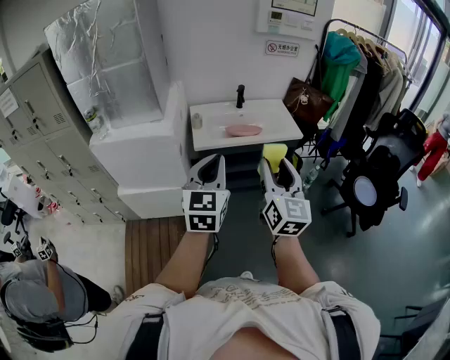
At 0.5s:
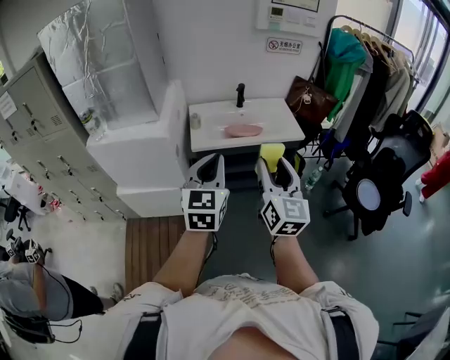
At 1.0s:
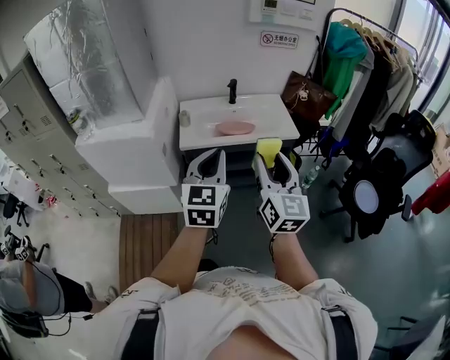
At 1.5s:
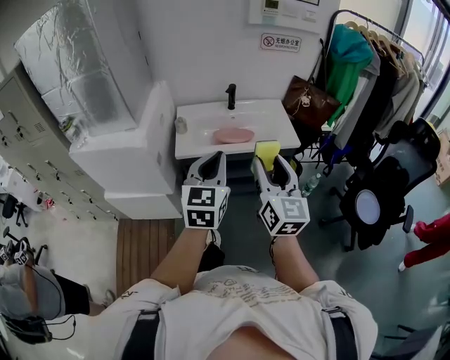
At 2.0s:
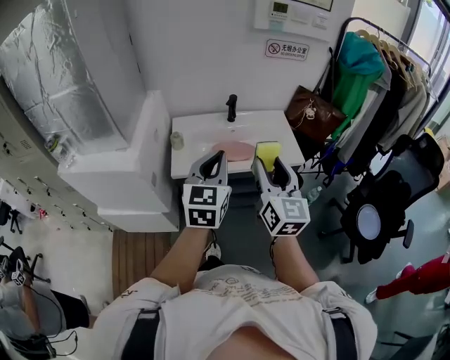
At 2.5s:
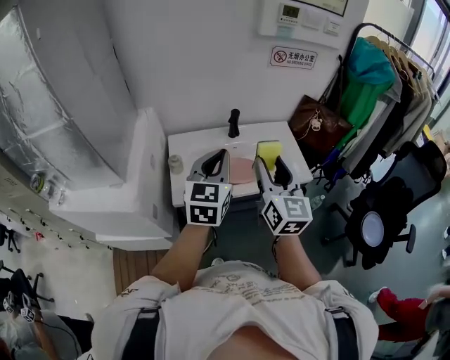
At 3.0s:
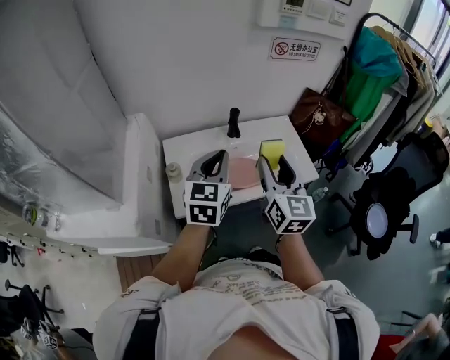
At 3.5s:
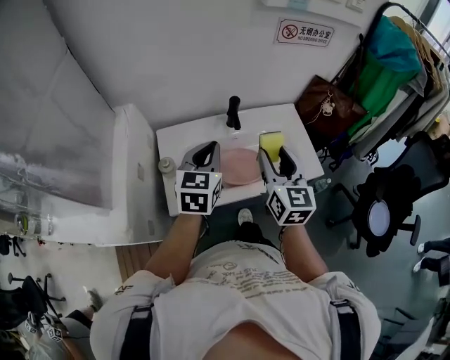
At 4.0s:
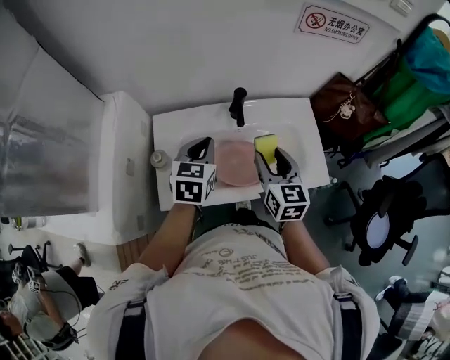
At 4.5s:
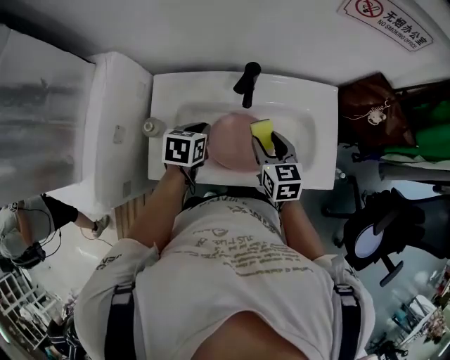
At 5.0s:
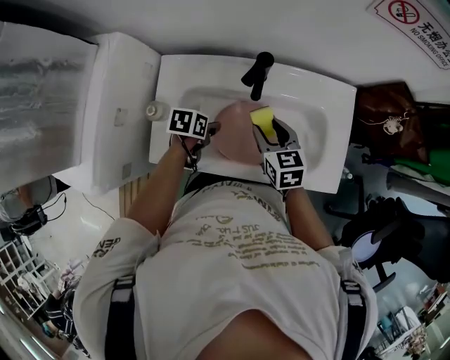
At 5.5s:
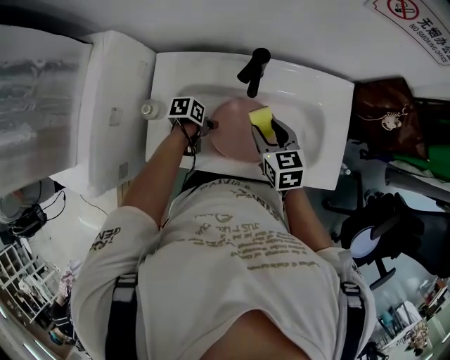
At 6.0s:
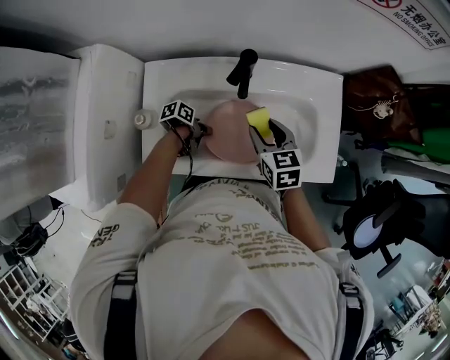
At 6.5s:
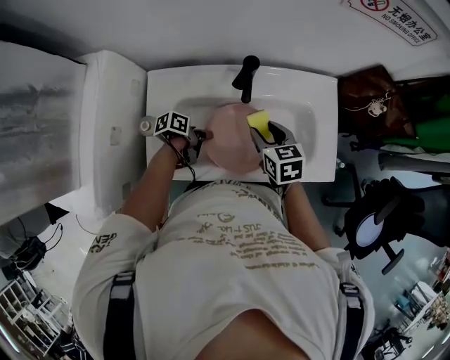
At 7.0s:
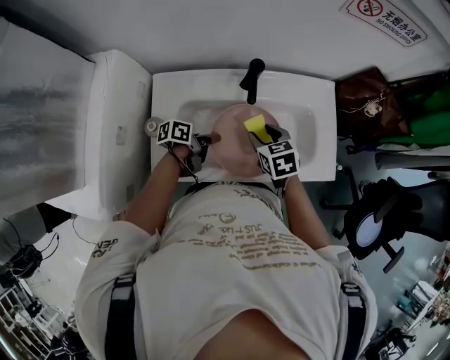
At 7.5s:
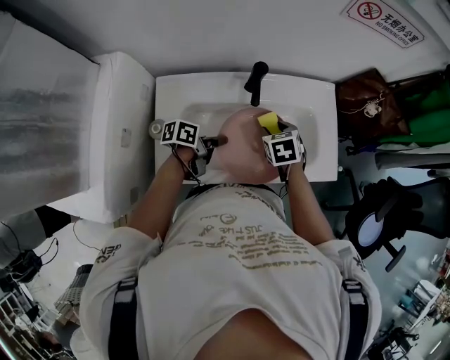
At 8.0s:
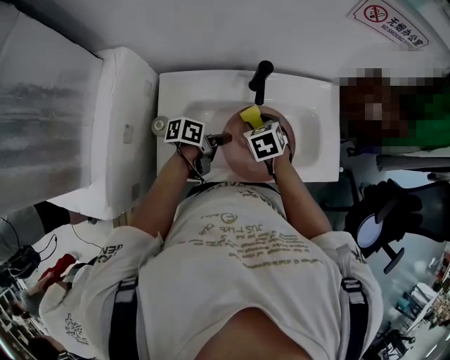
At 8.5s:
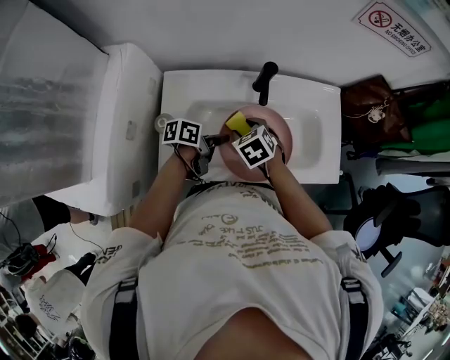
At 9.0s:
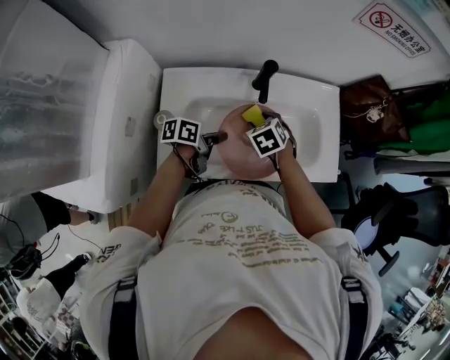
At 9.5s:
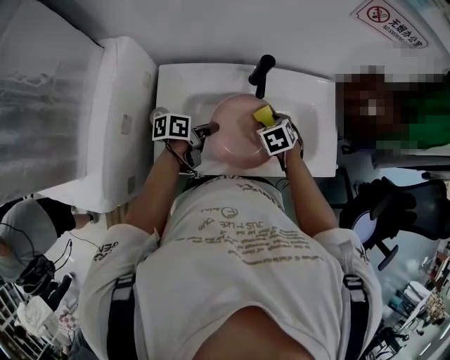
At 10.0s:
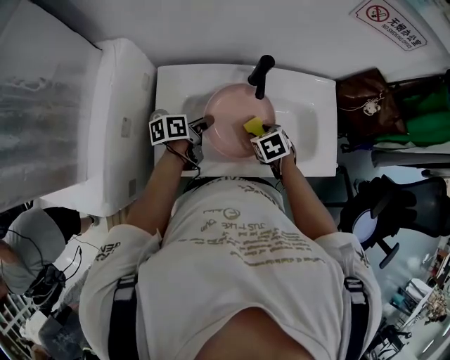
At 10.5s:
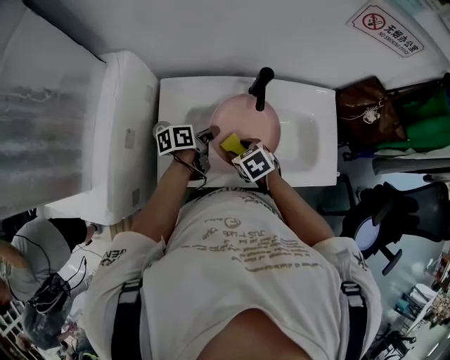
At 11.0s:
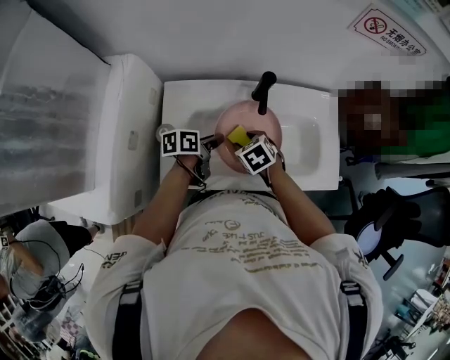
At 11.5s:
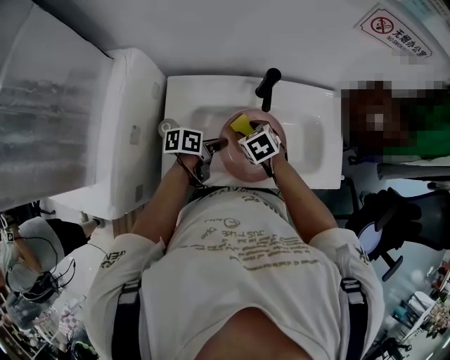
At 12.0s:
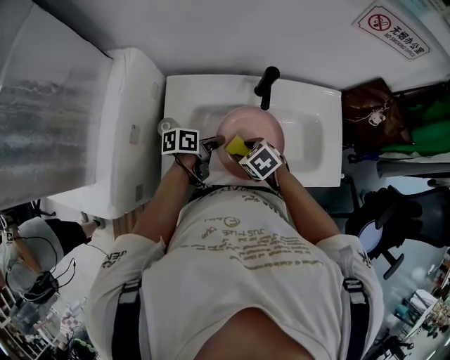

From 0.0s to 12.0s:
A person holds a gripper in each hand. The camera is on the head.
From 0.0s to 2.0s: The two grippers go some 25 cm forward.
From 2.0s to 4.0s: Both grippers move forward and downward, approximately 35 cm. The right gripper turns by some 30 degrees. Meanwhile the left gripper changes its angle by some 30 degrees.
From 4.0s to 6.0s: The right gripper shifts some 15 cm downward and forward, and swivels some 30 degrees. The left gripper travels downward by approximately 30 cm, changes its angle by about 80 degrees, and opens, then closes once more.
From 6.0s to 8.0s: The left gripper shifts about 10 cm upward, and swivels about 30 degrees, while the right gripper is displaced to the left by some 5 cm, and turns by approximately 30 degrees.
From 8.0s to 10.0s: The left gripper travels to the left by about 10 cm, while the right gripper shifts roughly 5 cm downward.
From 10.0s to 12.0s: The right gripper ends up some 10 cm from where it was, and changes its angle by some 20 degrees.

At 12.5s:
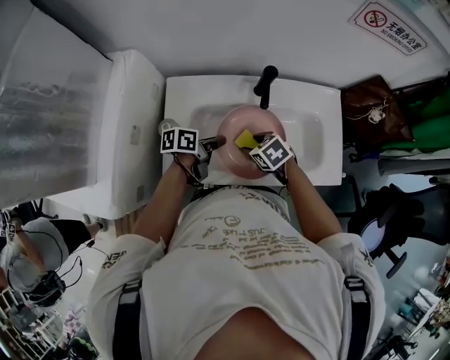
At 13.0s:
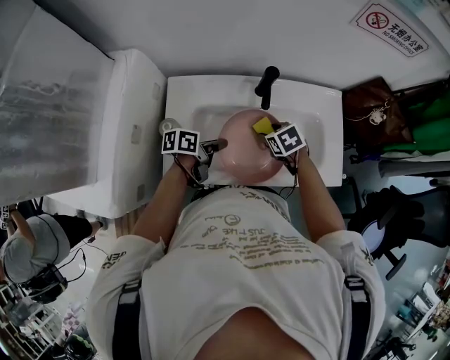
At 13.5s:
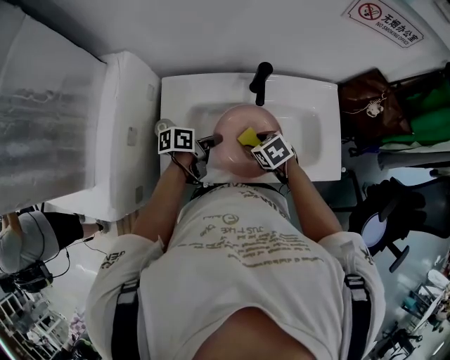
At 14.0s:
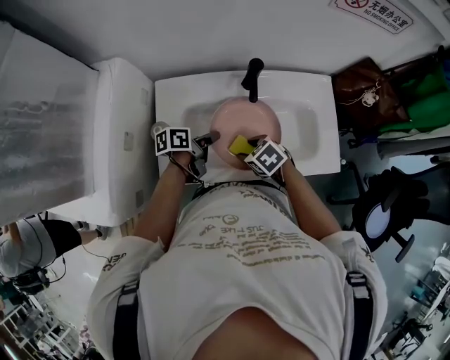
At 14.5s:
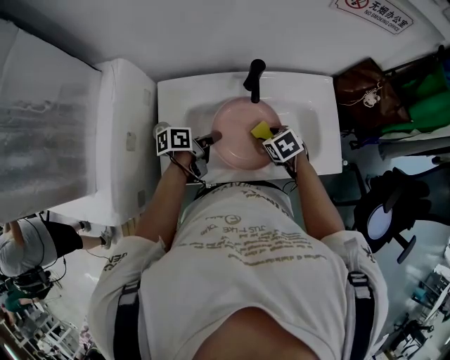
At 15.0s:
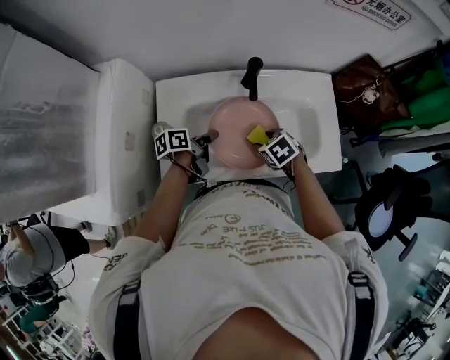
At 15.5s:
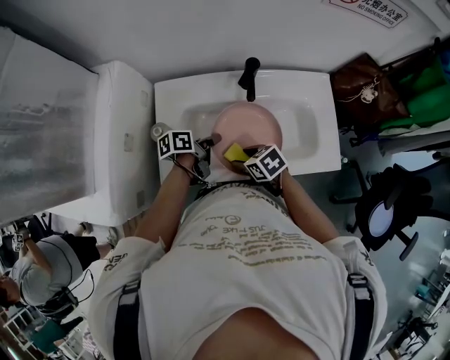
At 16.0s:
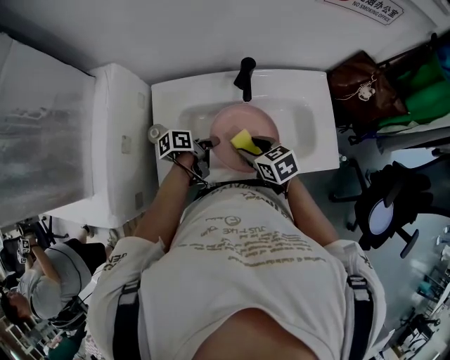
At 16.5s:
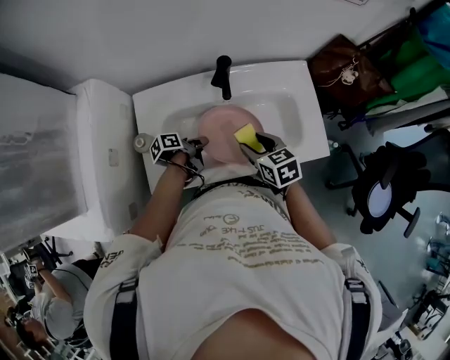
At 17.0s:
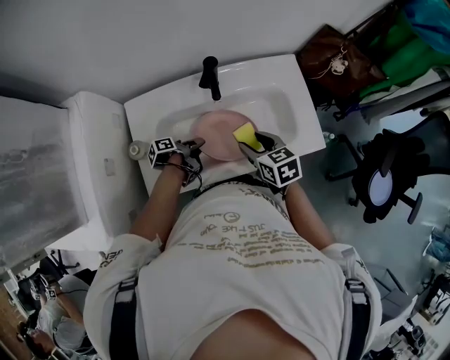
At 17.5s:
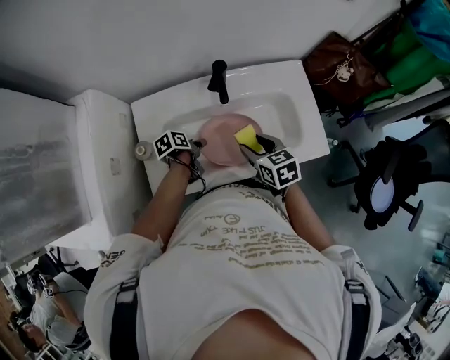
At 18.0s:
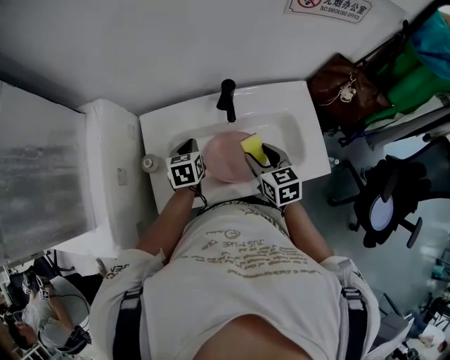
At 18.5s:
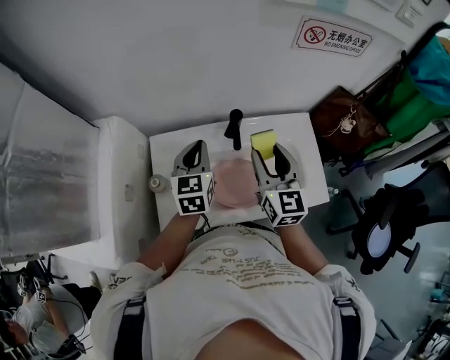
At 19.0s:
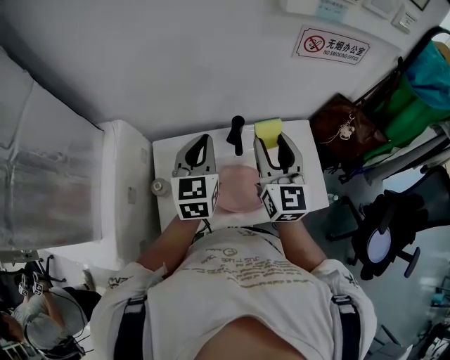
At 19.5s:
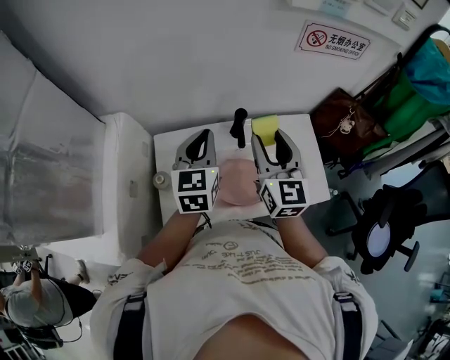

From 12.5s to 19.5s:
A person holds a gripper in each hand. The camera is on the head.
From 12.5s to 14.5s: The right gripper ends up about 10 cm from where it was.
From 14.5s to 16.0s: The right gripper shifts by some 10 cm, and rotates some 20 degrees.
From 16.0s to 17.5s: The left gripper shifts about 5 cm downward, swivels some 20 degrees, and opens its fingers. The right gripper travels to the right by some 5 cm.
From 17.5s to 19.5s: Both grippers move upward, about 30 cm. The right gripper points its fingers some 40 degrees further upward. Meanwhile the left gripper angles its fingers upward, by about 40 degrees, and closes its fingers.

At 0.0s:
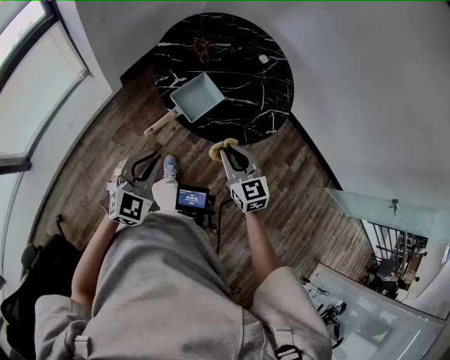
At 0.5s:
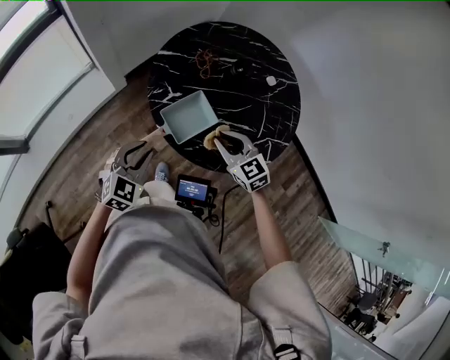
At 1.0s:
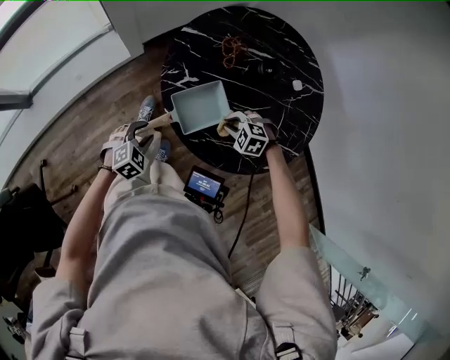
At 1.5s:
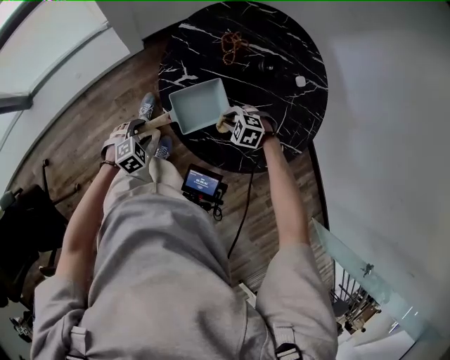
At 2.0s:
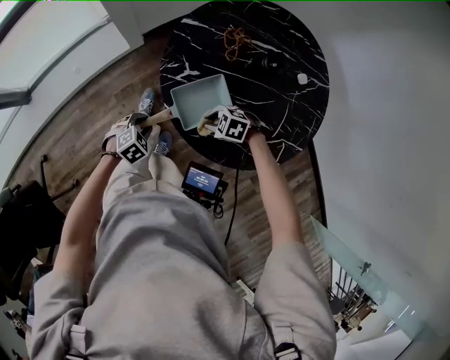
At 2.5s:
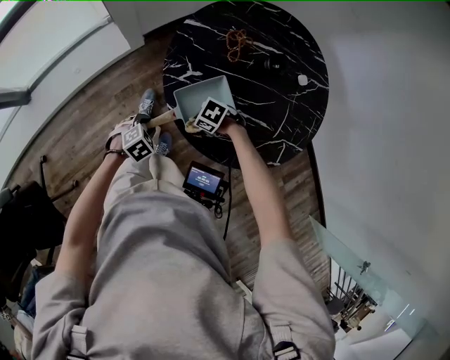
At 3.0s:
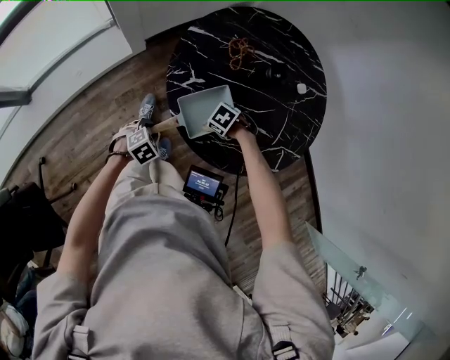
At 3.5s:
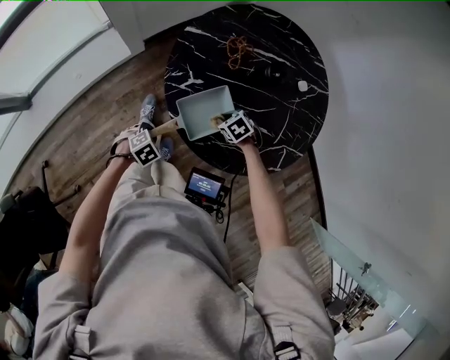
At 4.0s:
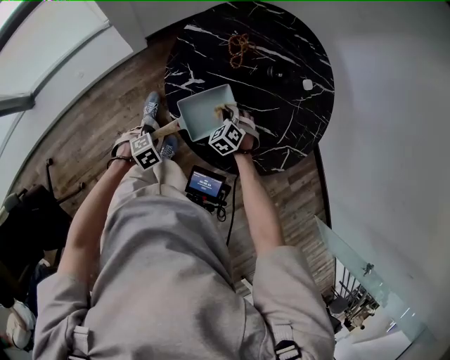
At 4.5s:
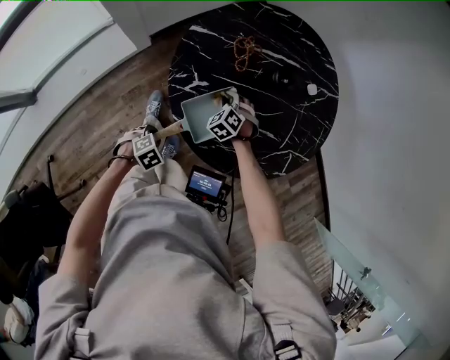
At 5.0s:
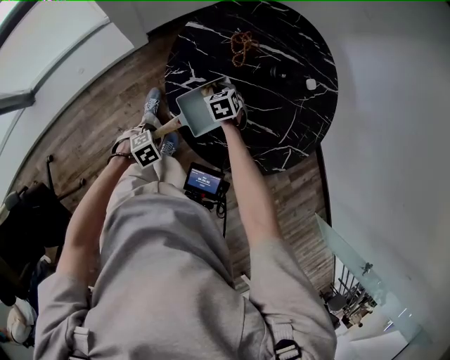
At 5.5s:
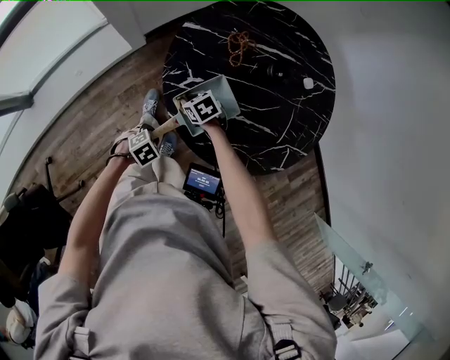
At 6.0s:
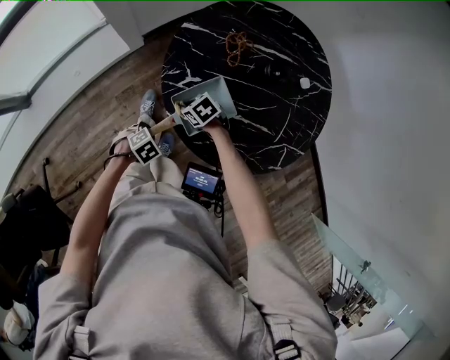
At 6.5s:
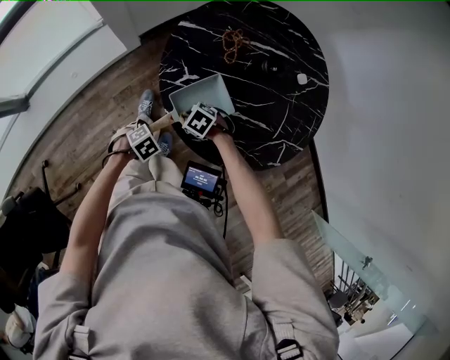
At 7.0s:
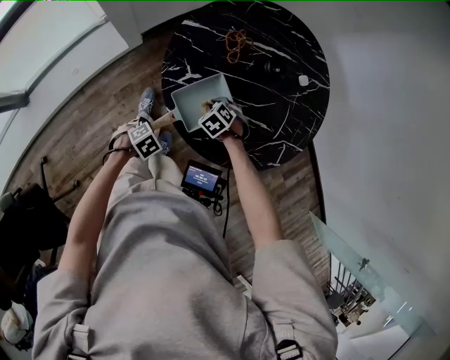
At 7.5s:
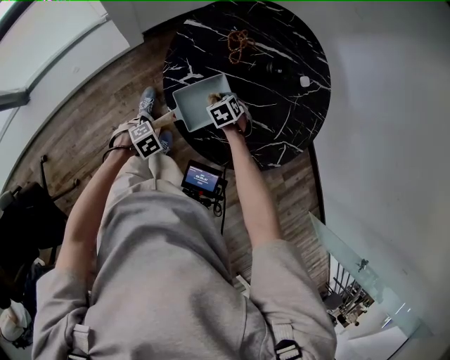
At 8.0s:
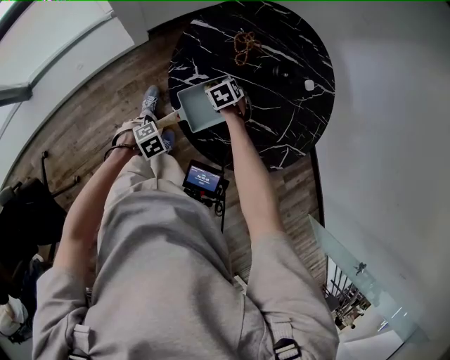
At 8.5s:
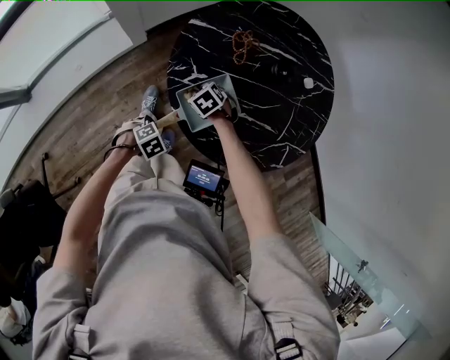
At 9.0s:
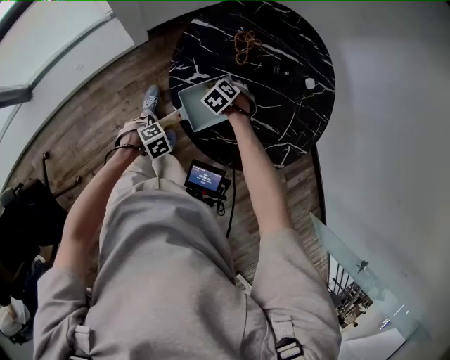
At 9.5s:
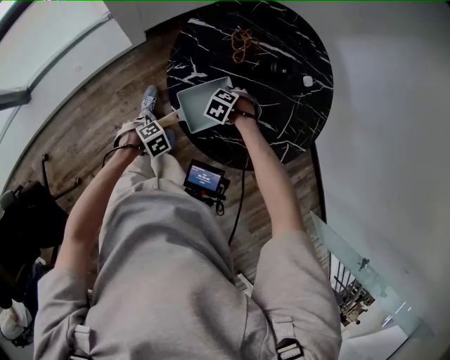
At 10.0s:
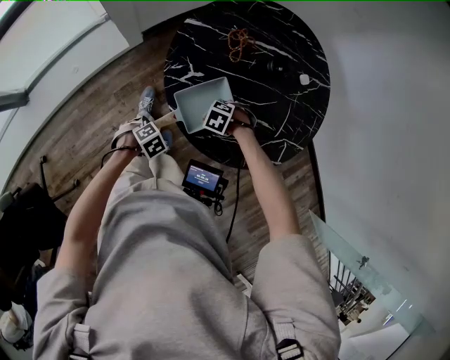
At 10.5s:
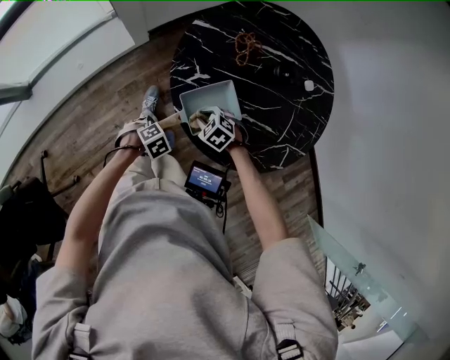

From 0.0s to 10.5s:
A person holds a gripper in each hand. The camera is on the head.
From 0.0s to 2.0s: The right gripper heads downward, covering approximately 25 cm, and tips its fingers downward by roughly 40 degrees.
From 2.0s to 4.0s: The right gripper shifts by some 10 cm, and rotates roughly 50 degrees.
From 4.0s to 6.5s: The right gripper ends up about 15 cm from where it was, and changes its angle by some 40 degrees.
From 8.5s to 10.5s: The right gripper moves approximately 10 cm.
